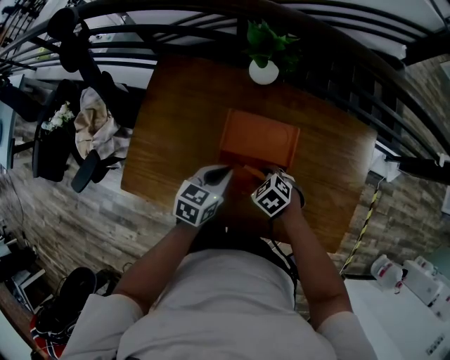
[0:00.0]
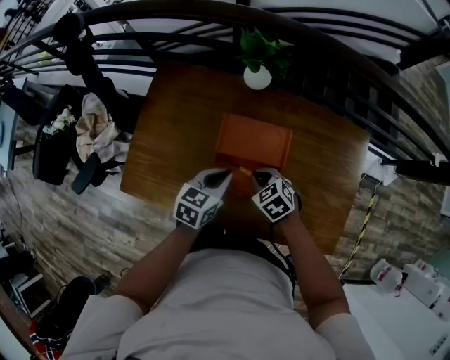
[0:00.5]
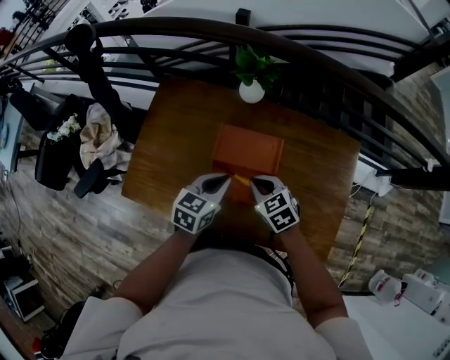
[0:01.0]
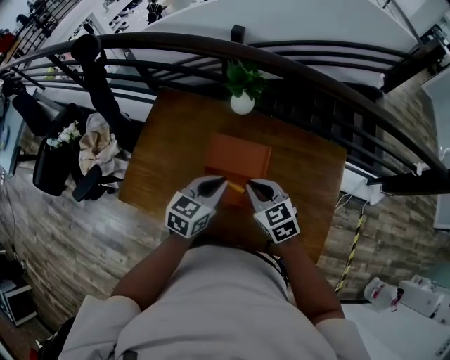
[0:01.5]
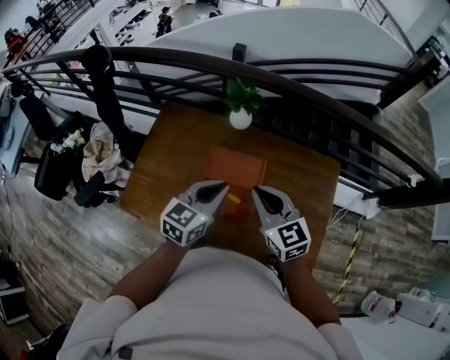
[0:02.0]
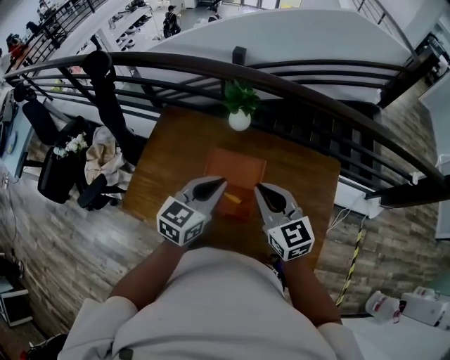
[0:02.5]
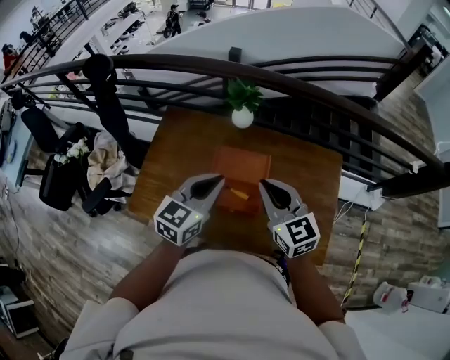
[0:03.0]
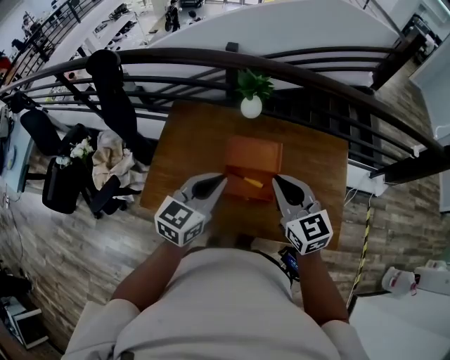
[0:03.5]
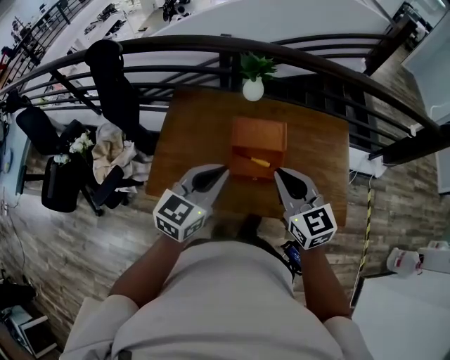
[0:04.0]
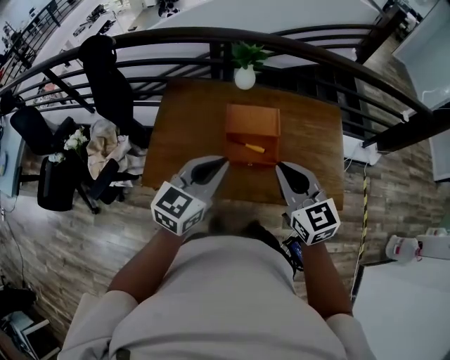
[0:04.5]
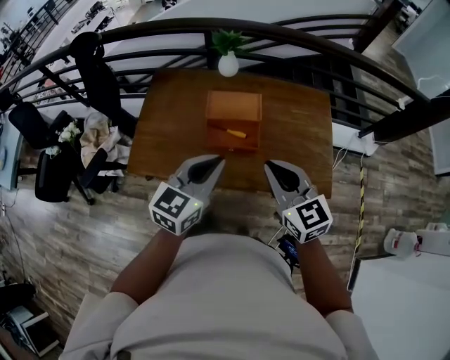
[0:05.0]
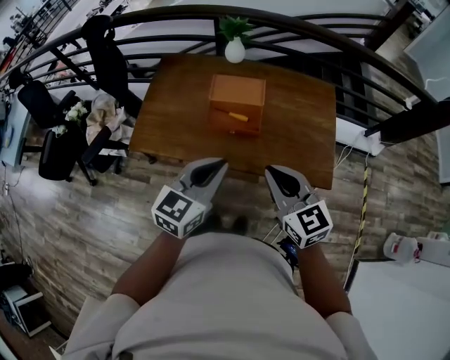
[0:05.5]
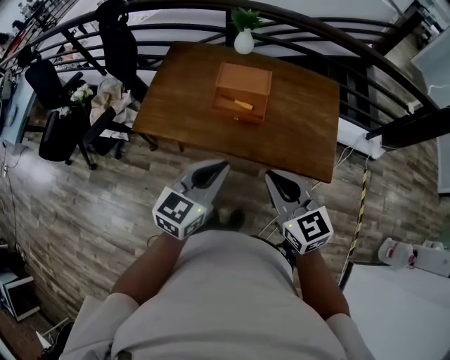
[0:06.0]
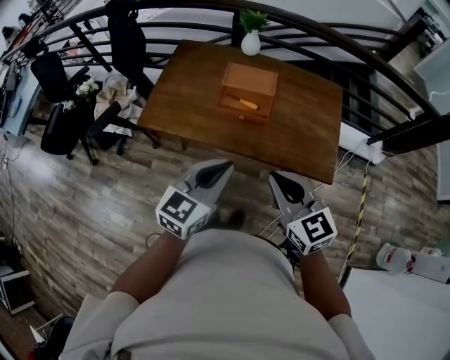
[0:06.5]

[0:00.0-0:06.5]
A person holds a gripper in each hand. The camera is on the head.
0:00.0 to 0:02.0: Both grippers travel together upward, roughly 25 cm. The left gripper swivels approximately 20 degrees; the right gripper angles its fingers upward, by about 50 degrees, and closes.
0:02.0 to 0:04.5: The right gripper is displaced backward by some 20 cm; the left gripper heads backward and to the left, covering about 20 cm.
0:04.5 to 0:06.5: The right gripper is displaced backward by roughly 25 cm, while the left gripper moves backward and to the right, roughly 25 cm.

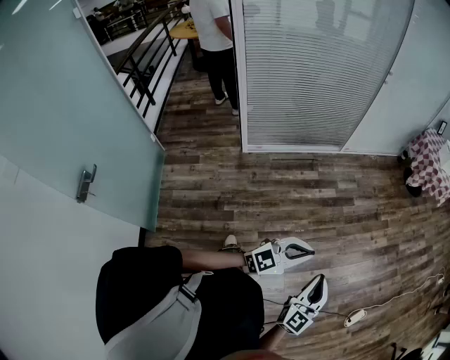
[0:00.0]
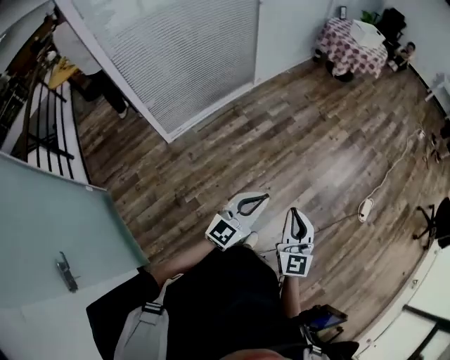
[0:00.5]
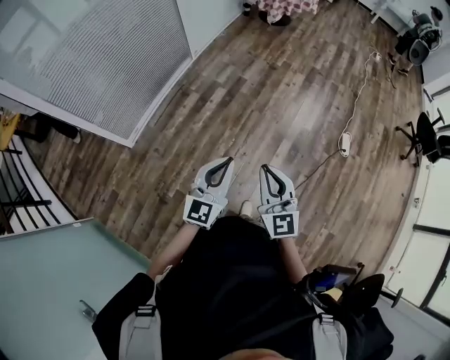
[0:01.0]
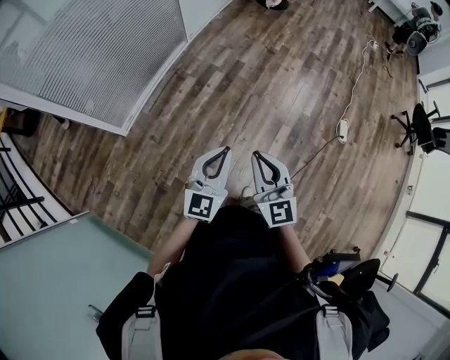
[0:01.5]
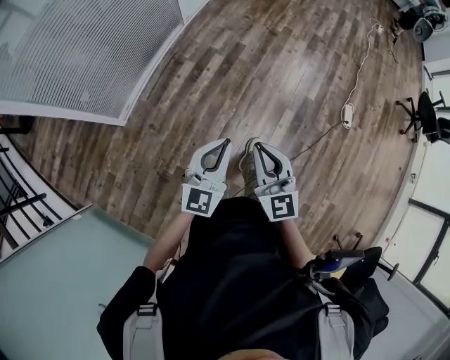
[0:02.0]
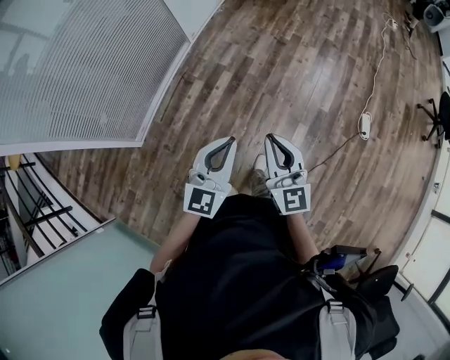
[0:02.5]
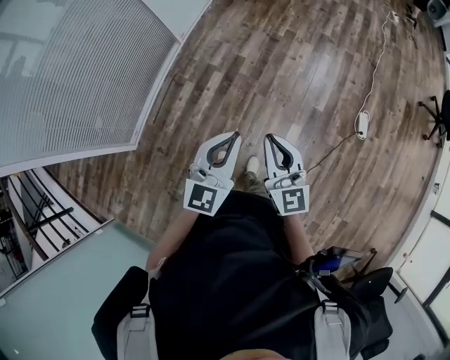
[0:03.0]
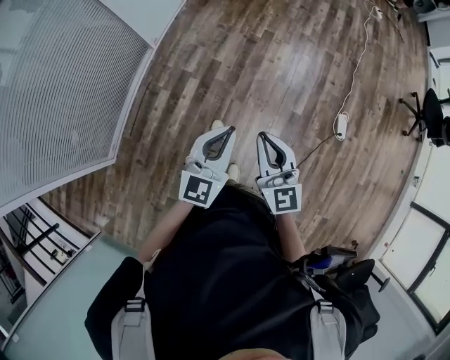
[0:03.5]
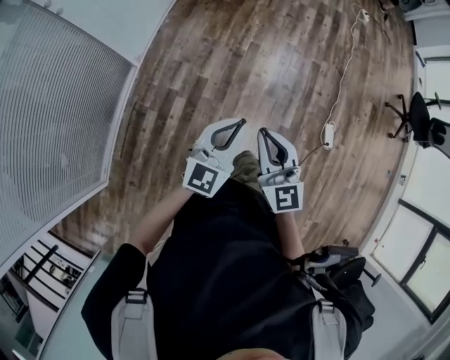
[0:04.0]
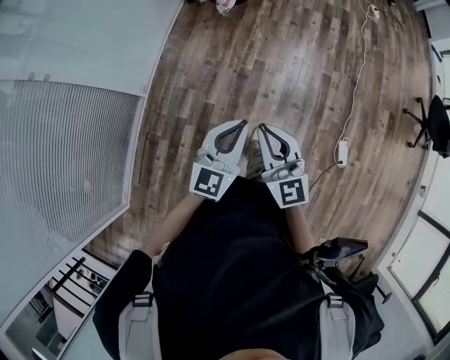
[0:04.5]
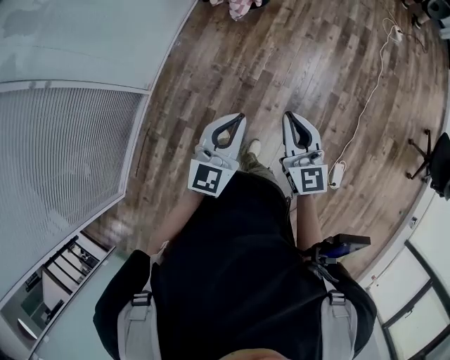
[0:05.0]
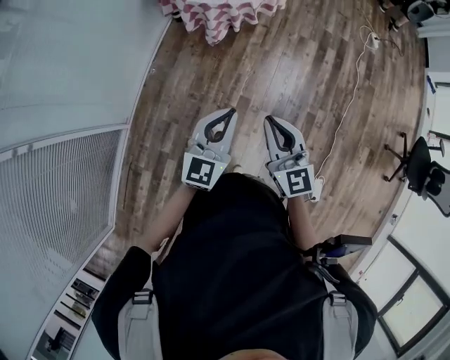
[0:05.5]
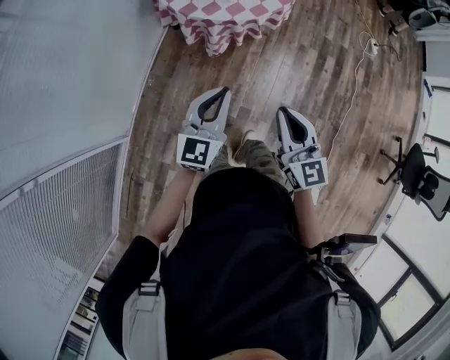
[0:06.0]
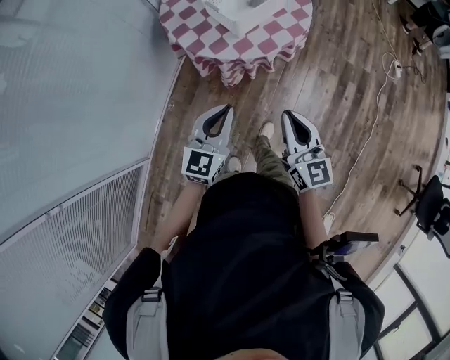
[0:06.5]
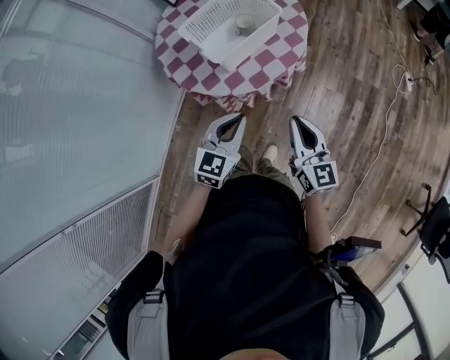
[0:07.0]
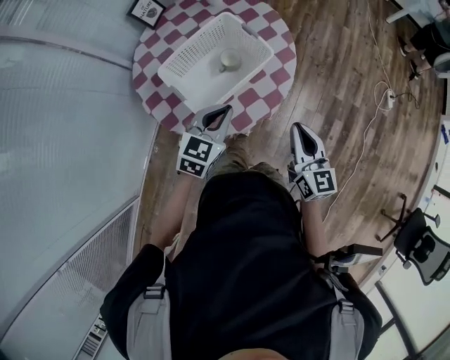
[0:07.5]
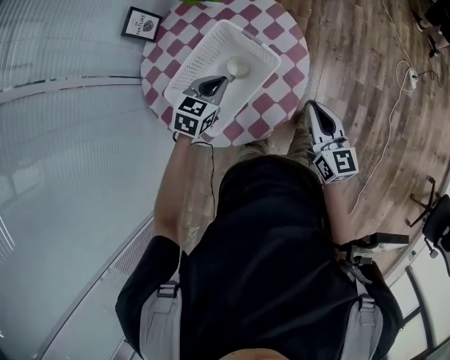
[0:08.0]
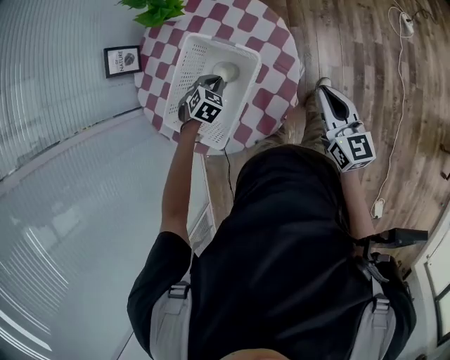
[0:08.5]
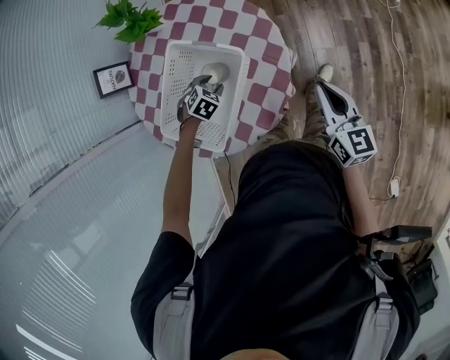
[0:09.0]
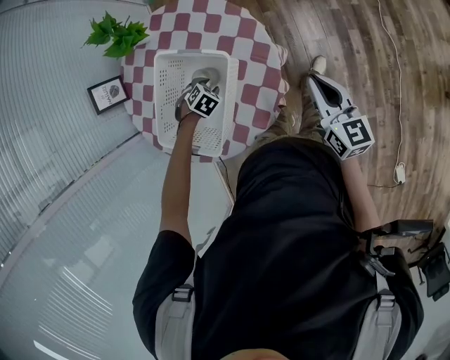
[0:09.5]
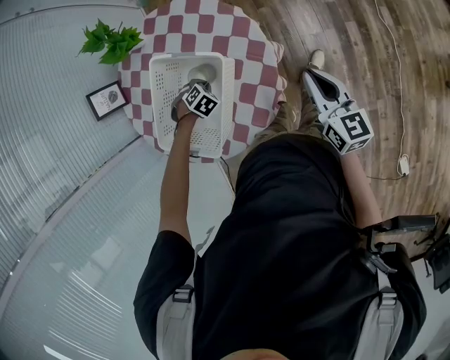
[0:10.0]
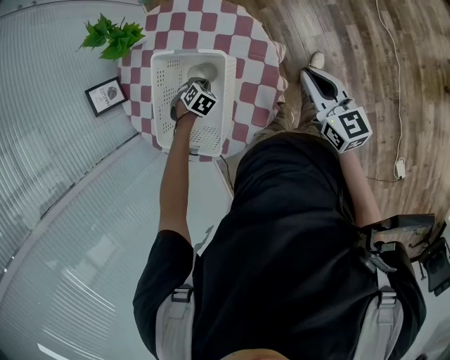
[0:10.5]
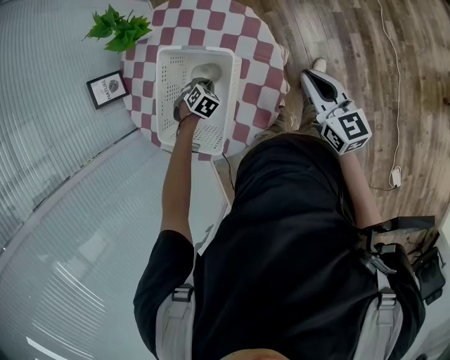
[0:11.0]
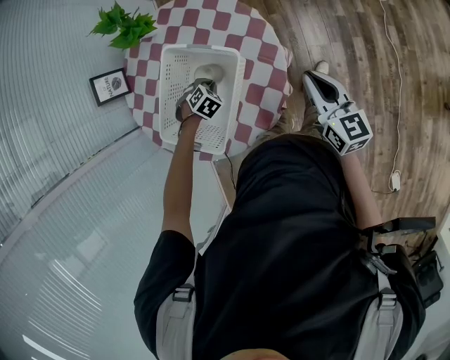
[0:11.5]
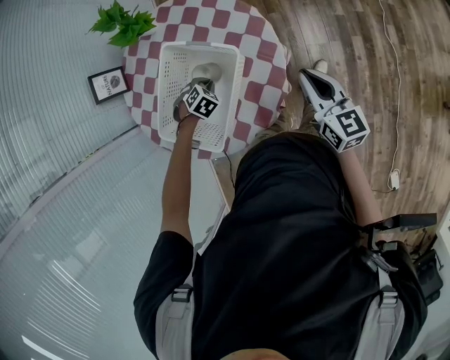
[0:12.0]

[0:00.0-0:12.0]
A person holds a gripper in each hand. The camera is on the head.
0:00.0 to 0:02.0: The two grippers go roughly 20 cm to the left and forward.
0:02.0 to 0:04.0: Both grippers are carried forward, about 60 cm.
0:04.0 to 0:06.0: The two grippers travel together, forward, roughly 70 cm.
0:06.0 to 0:08.0: Both grippers are carried forward, about 60 cm. The left gripper points its fingers about 40 degrees further downward.
0:08.0 to 0:10.0: The left gripper goes about 20 cm downward, tips its fingers downward by about 40 degrees, and opens, then closes once more. The right gripper shifts by about 10 cm, and changes its angle by roughly 20 degrees.
0:10.0 to 0:12.0: The right gripper ends up roughly 5 cm from where it was.

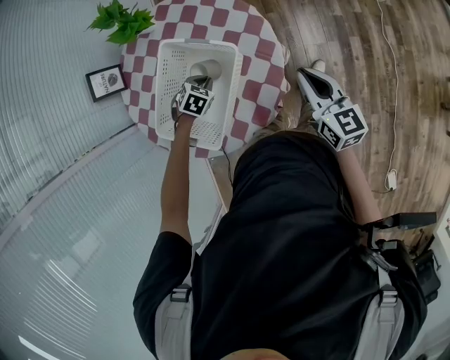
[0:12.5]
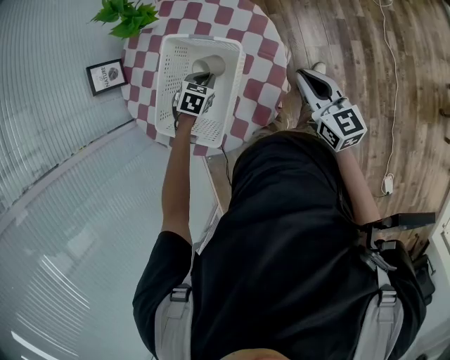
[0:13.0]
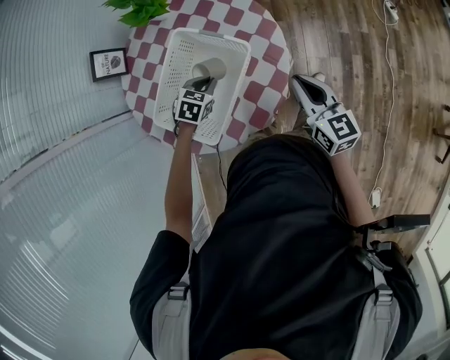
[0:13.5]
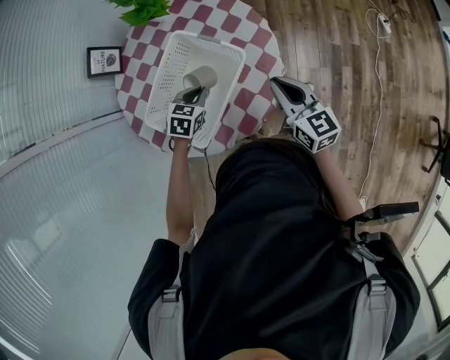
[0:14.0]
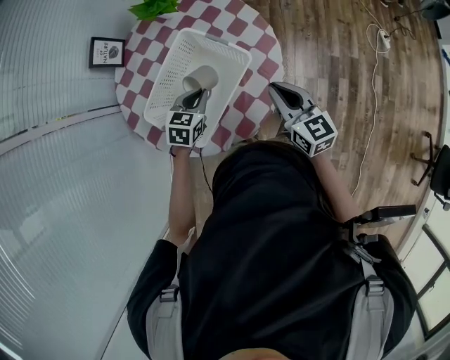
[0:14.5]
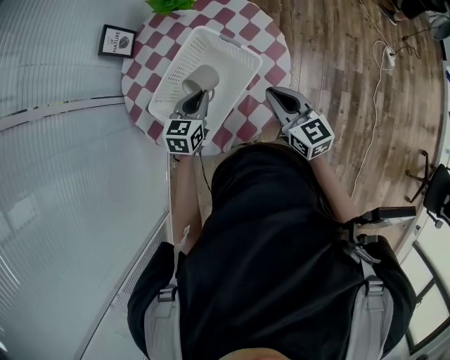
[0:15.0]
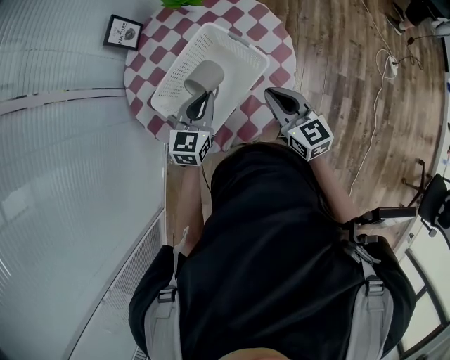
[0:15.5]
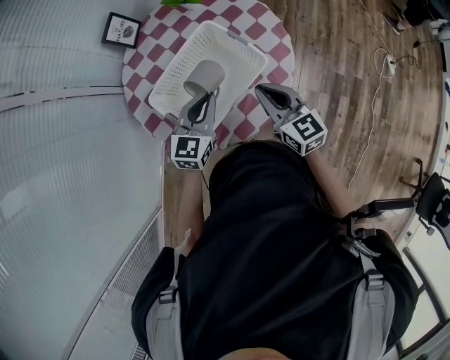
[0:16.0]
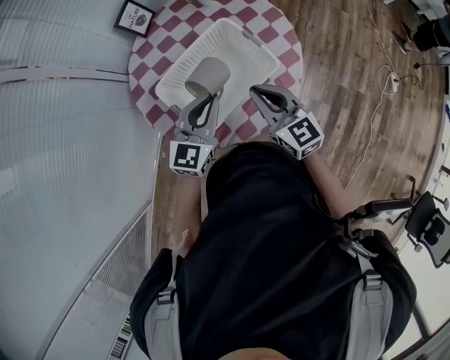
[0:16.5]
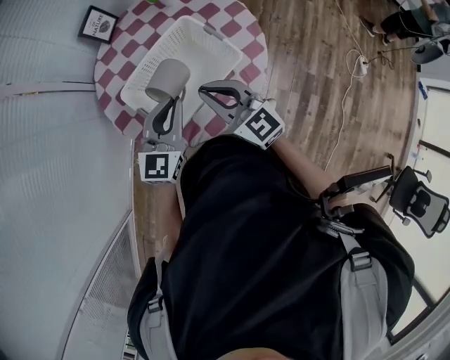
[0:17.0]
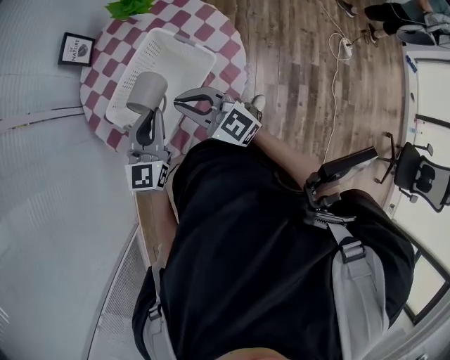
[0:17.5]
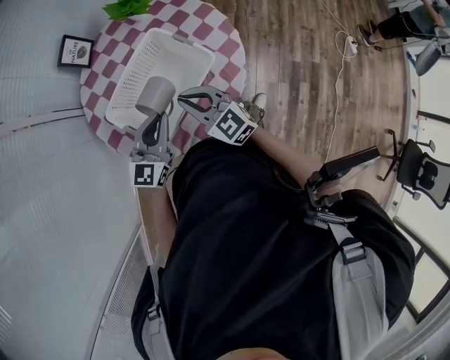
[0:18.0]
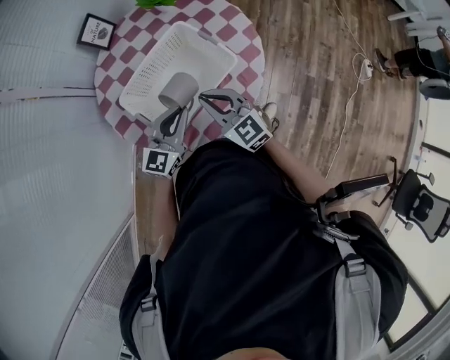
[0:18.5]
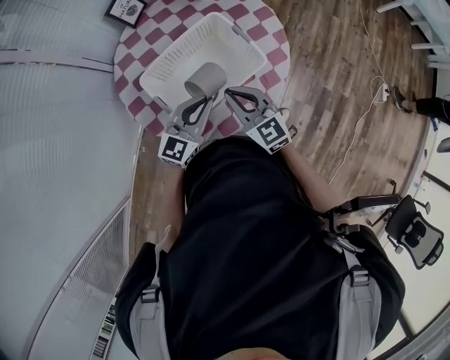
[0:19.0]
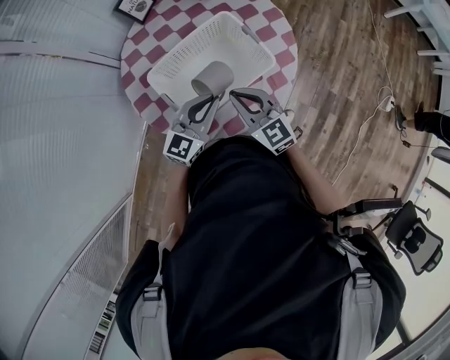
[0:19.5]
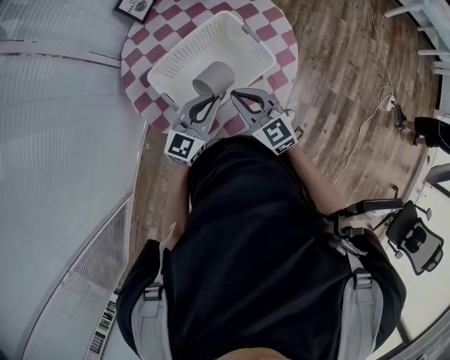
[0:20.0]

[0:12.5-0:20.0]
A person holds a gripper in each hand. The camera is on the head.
0:12.5 to 0:14.5: The right gripper moves to the left, some 10 cm, while the left gripper shifts approximately 10 cm upward, and changes its angle by approximately 40 degrees.
0:14.5 to 0:16.5: The right gripper heads to the left, covering roughly 10 cm, and turns by some 20 degrees; the left gripper shifts about 15 cm upward, and tilts its fingers about 30 degrees upward.
0:16.5 to 0:18.0: The right gripper shifts by some 5 cm.
0:18.0 to 0:20.0: The grippers move only a little.

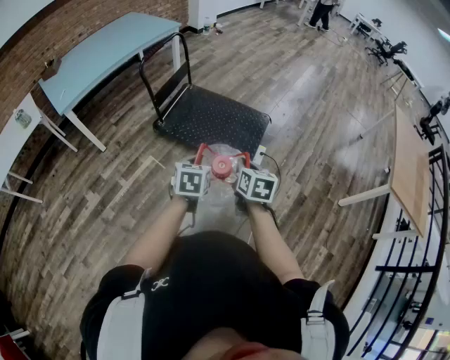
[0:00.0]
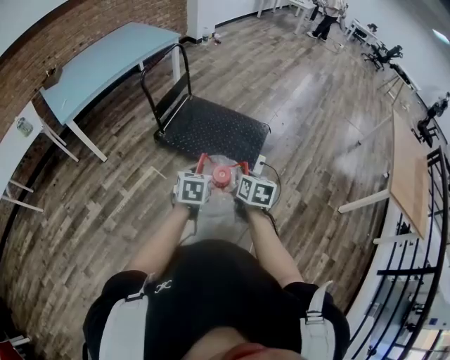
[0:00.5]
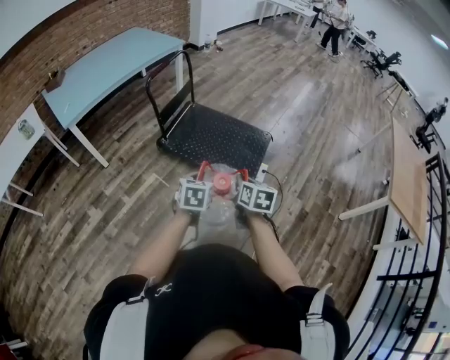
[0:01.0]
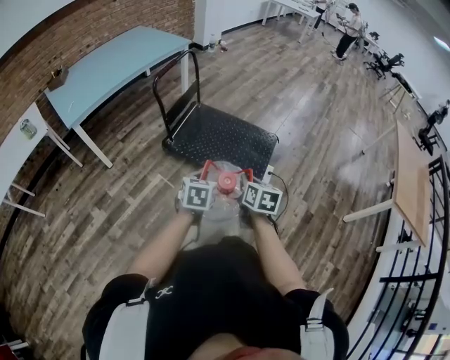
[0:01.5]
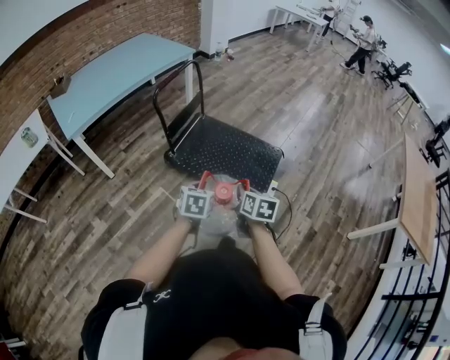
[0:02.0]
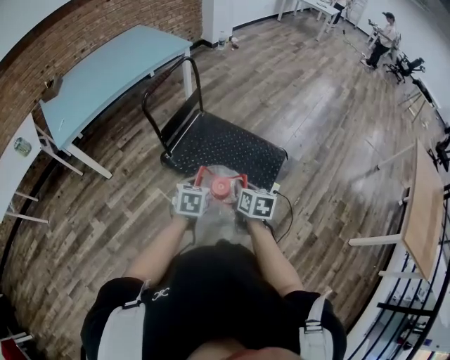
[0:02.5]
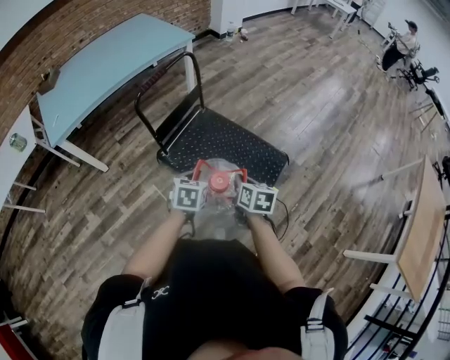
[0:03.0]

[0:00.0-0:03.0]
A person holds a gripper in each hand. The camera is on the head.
0:00.0 to 0:01.5: Both grippers move to the left, some 5 cm.
0:01.5 to 0:03.0: The two grippers go roughly 25 cm forward.
